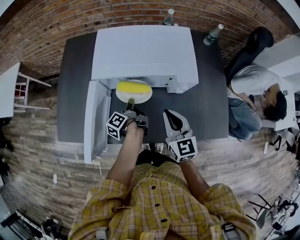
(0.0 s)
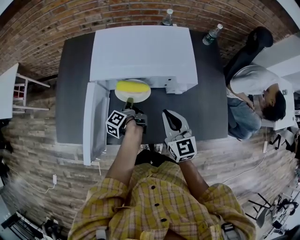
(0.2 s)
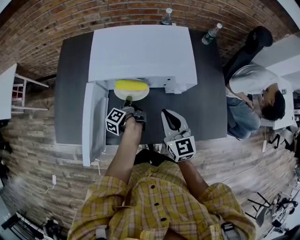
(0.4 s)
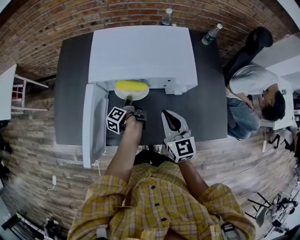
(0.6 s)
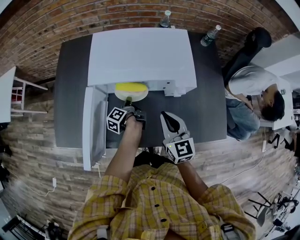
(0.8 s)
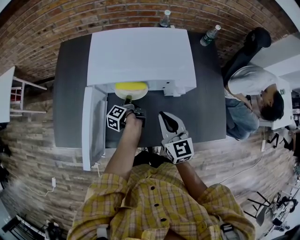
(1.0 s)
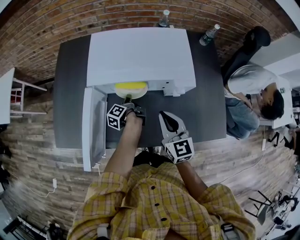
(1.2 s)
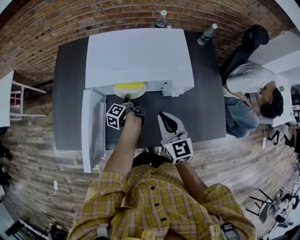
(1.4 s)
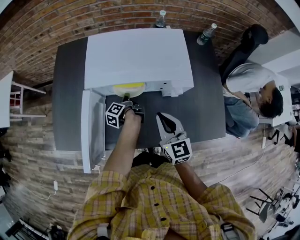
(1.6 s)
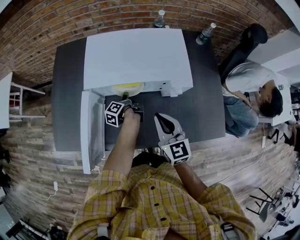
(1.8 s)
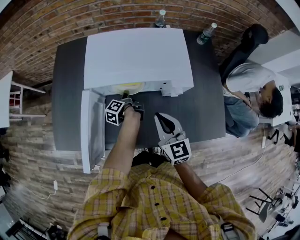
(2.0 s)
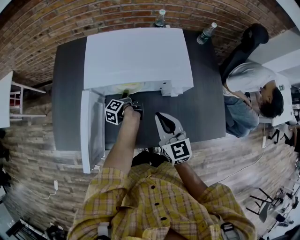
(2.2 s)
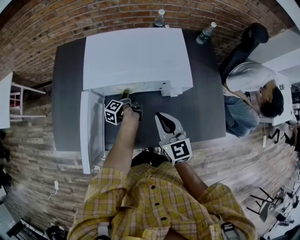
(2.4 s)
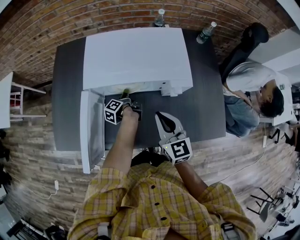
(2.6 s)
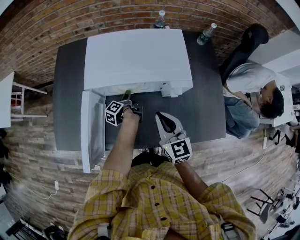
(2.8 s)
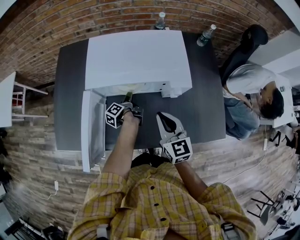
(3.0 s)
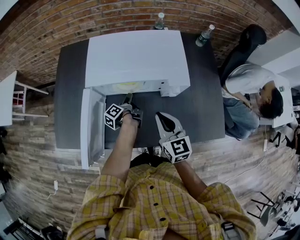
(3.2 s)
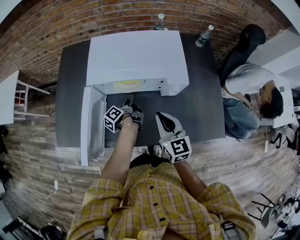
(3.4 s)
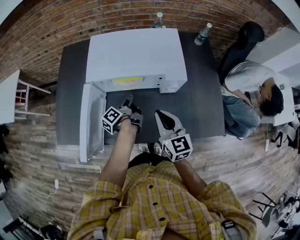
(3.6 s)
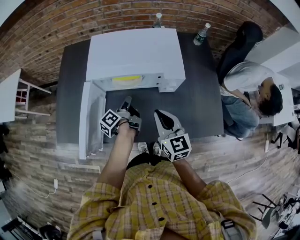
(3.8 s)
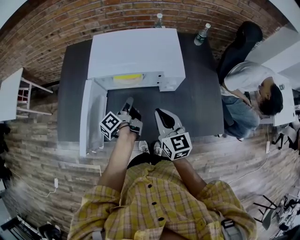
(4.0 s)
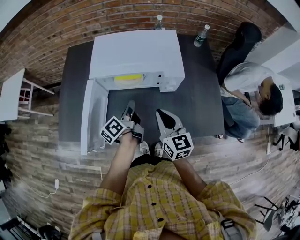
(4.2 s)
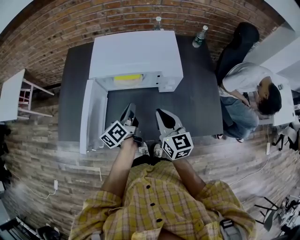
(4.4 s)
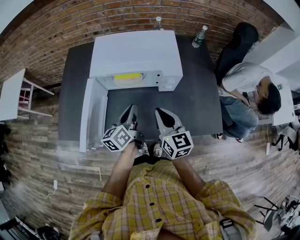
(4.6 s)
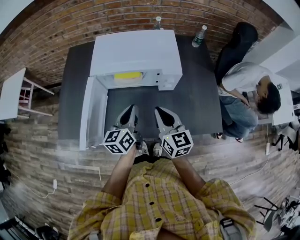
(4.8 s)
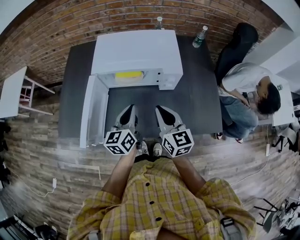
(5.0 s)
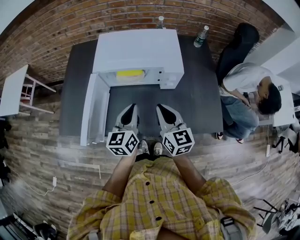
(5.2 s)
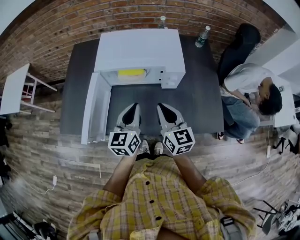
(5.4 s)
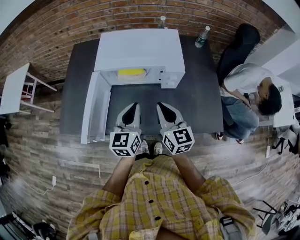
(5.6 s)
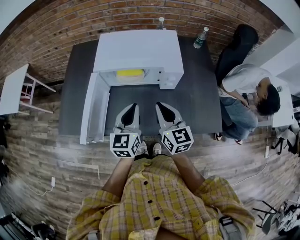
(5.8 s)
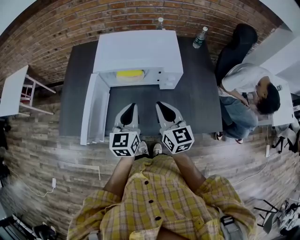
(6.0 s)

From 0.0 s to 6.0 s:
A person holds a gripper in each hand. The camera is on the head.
From 3.0 s to 4.4 s: The right gripper ends up about 5 cm from where it was.

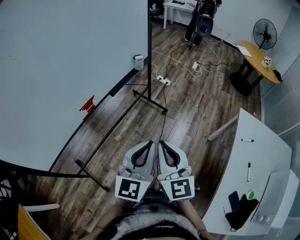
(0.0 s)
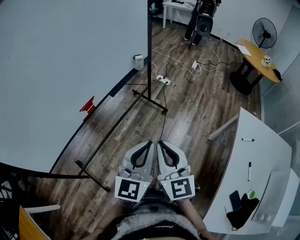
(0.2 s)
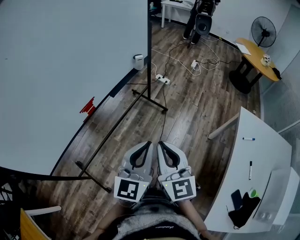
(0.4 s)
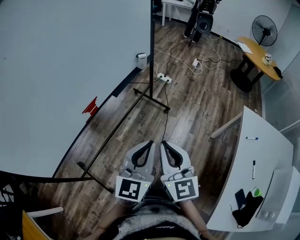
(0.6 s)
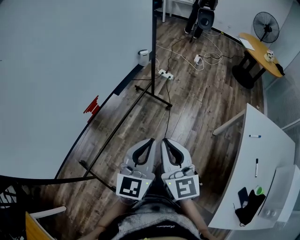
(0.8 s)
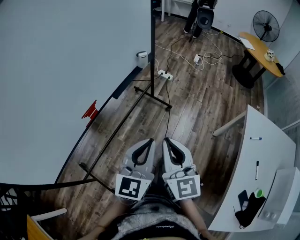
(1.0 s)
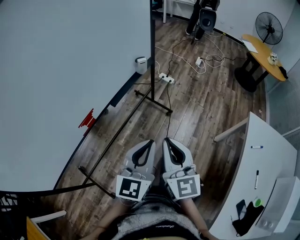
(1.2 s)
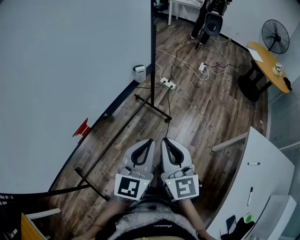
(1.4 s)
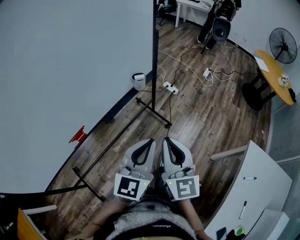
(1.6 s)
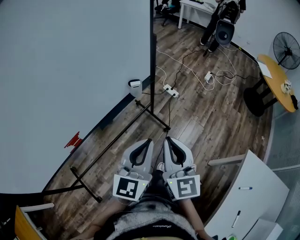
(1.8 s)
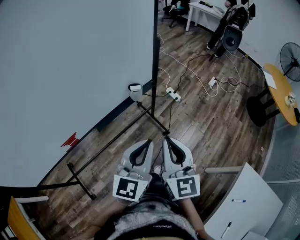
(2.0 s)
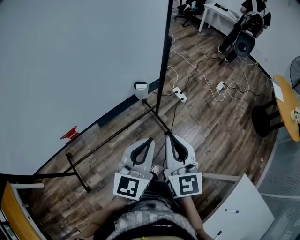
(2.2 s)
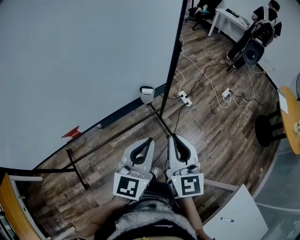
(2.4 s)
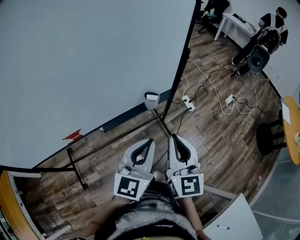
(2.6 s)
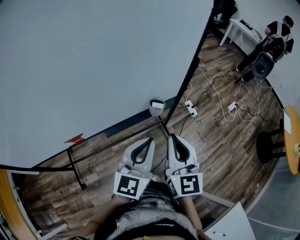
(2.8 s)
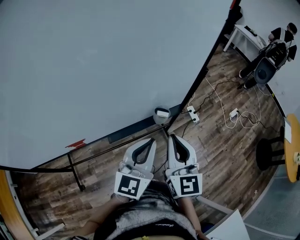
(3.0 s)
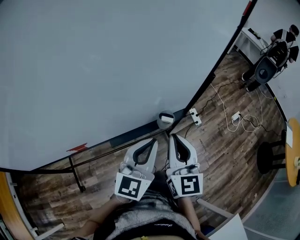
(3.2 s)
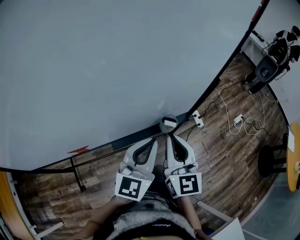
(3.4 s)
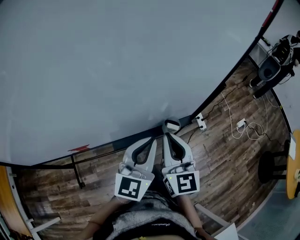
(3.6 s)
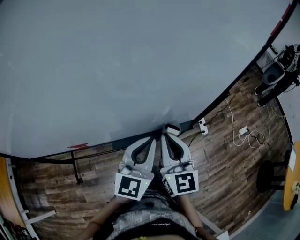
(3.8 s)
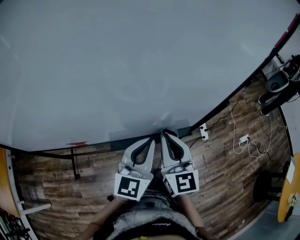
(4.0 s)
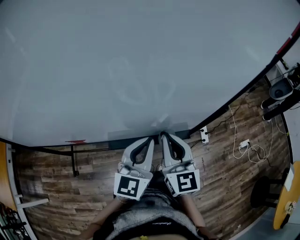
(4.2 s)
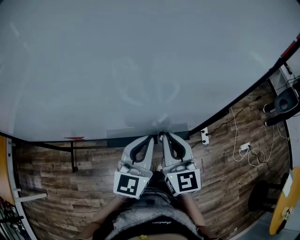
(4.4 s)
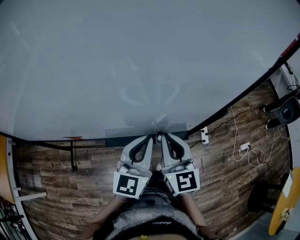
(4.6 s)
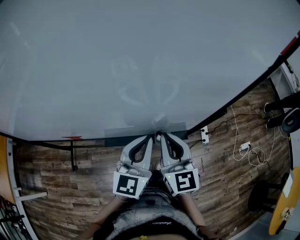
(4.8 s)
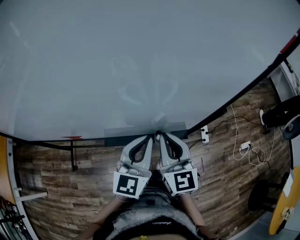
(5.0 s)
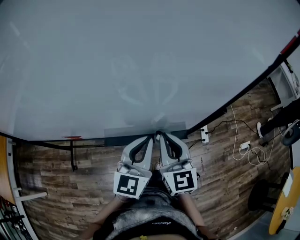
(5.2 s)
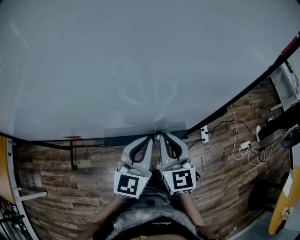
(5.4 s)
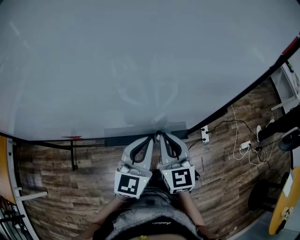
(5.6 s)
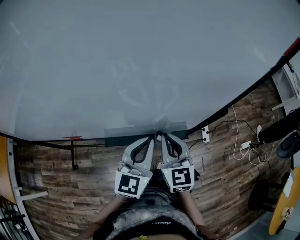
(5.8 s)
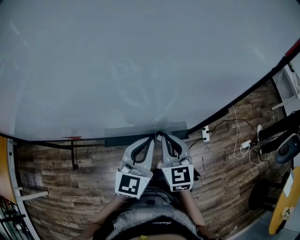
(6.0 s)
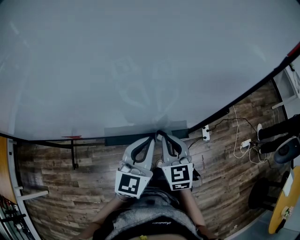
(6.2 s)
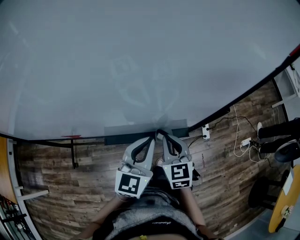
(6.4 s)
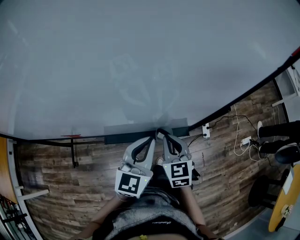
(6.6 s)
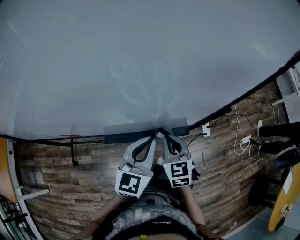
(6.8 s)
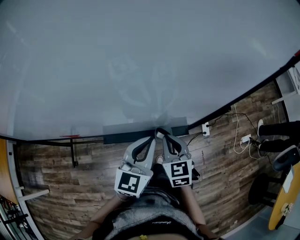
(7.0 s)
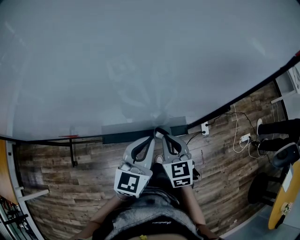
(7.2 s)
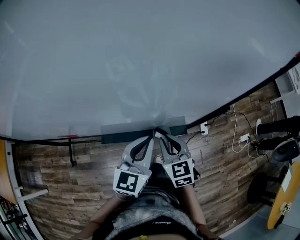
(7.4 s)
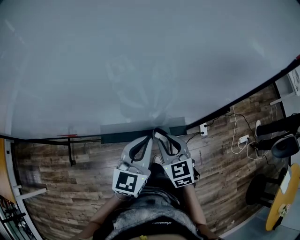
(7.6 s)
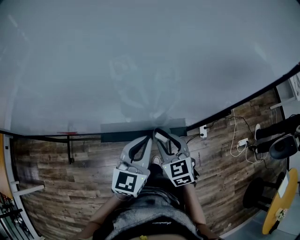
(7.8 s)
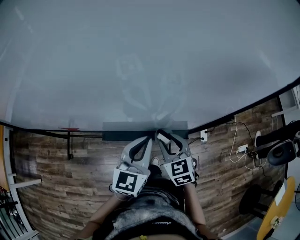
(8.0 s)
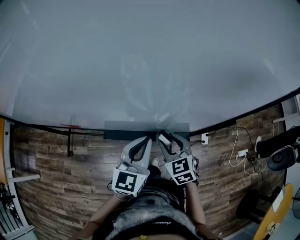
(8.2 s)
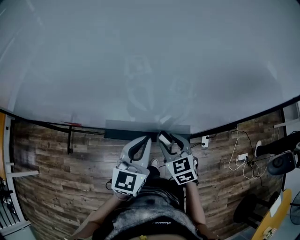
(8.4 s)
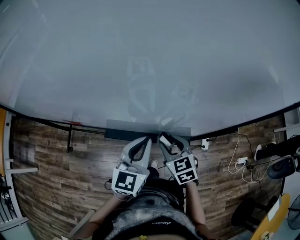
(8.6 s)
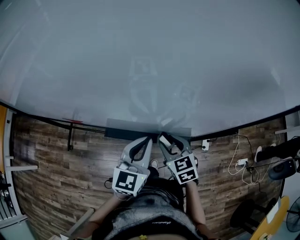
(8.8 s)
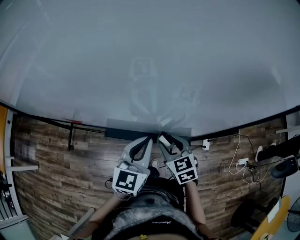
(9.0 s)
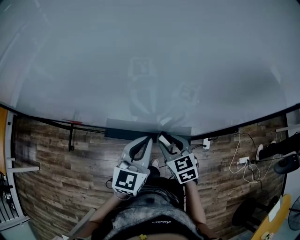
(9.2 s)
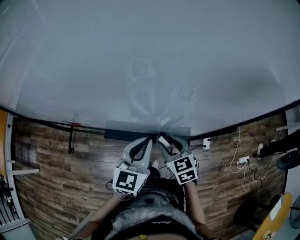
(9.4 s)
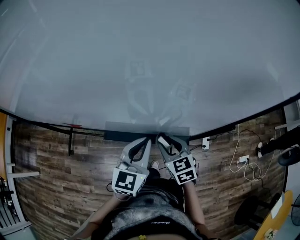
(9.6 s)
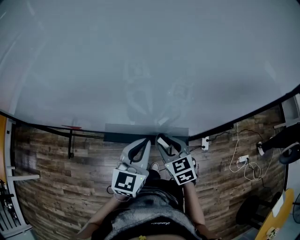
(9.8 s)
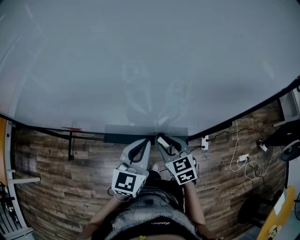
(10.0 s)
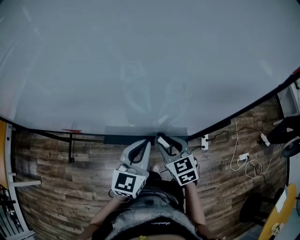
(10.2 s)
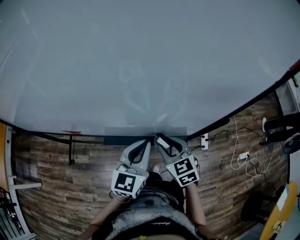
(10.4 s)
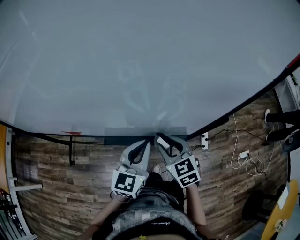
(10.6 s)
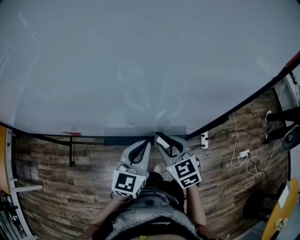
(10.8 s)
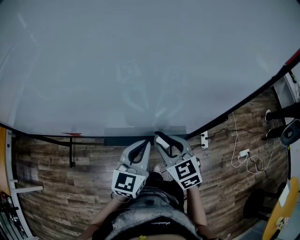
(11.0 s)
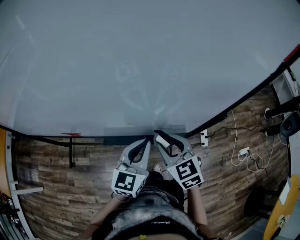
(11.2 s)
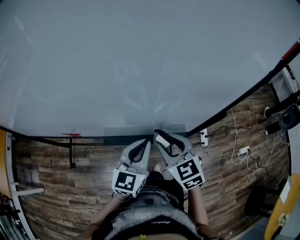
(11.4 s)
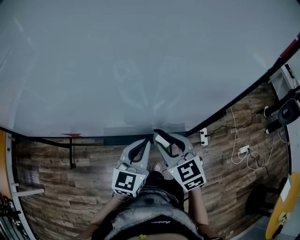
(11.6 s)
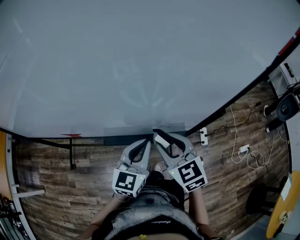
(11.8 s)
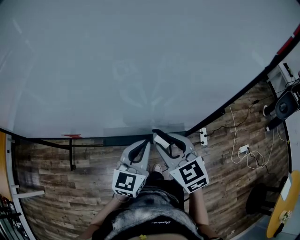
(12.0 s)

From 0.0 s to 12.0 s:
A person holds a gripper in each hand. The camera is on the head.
From 0.0 s to 1.6 s: The grippers both shift forward by some 30 cm.
From 1.6 s to 3.0 s: The grippers both shift forward by roughly 25 cm. The right gripper swivels about 20 degrees, while the left gripper turns by about 20 degrees.
From 3.0 s to 4.4 s: The two grippers go some 15 cm forward. The right gripper rotates about 20 degrees, while the left gripper swivels some 20 degrees.
From 4.4 s to 6.0 s: The right gripper heads downward, covering some 5 cm.
From 6.0 s to 7.6 s: The right gripper shifts some 5 cm downward, and opens.
From 7.6 s to 10.4 s: The grippers move only a little.
From 10.4 s to 12.0 s: The right gripper shifts roughly 10 cm upward.

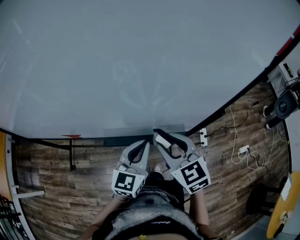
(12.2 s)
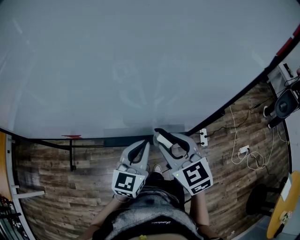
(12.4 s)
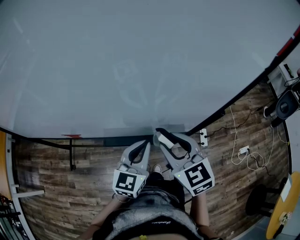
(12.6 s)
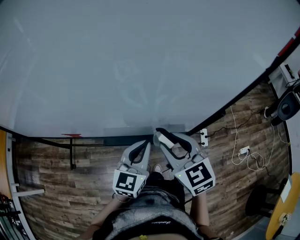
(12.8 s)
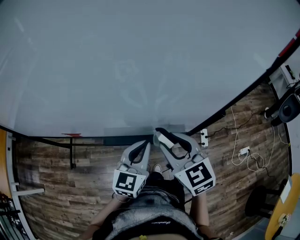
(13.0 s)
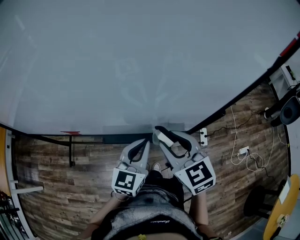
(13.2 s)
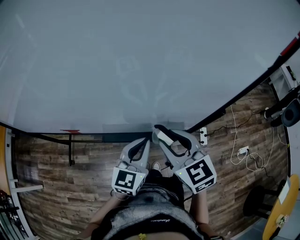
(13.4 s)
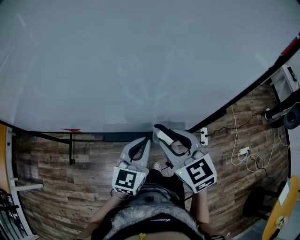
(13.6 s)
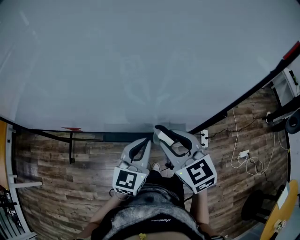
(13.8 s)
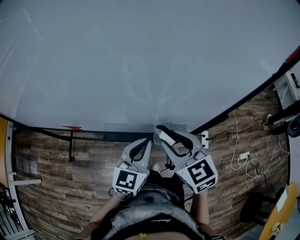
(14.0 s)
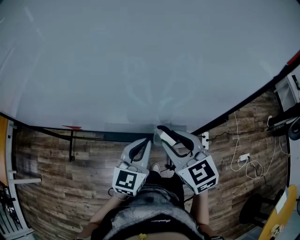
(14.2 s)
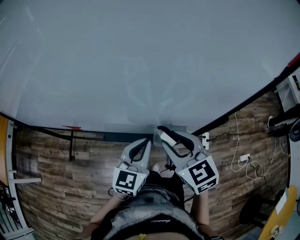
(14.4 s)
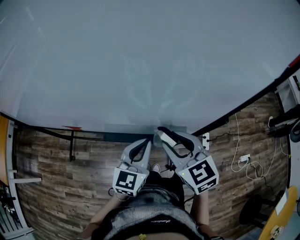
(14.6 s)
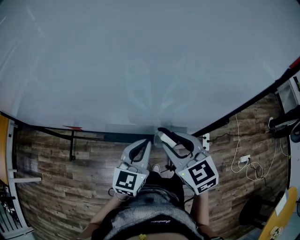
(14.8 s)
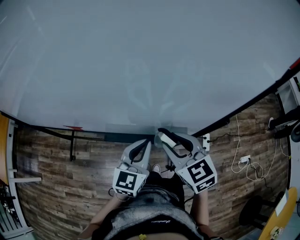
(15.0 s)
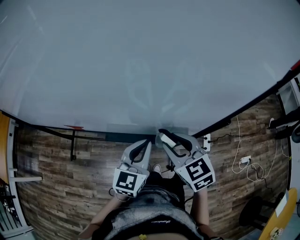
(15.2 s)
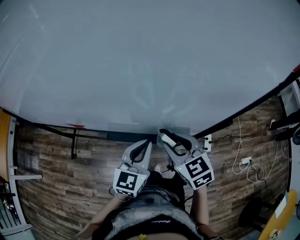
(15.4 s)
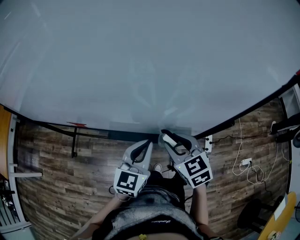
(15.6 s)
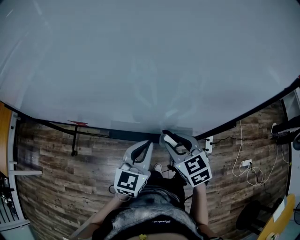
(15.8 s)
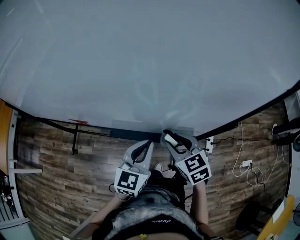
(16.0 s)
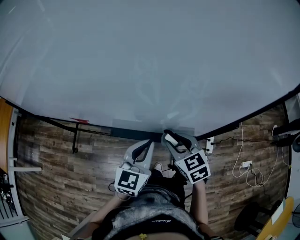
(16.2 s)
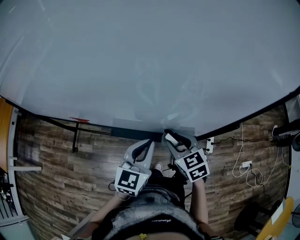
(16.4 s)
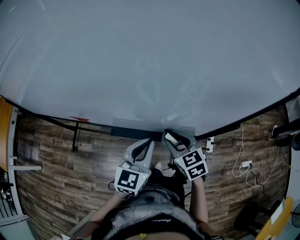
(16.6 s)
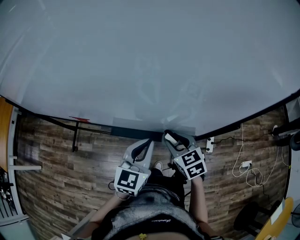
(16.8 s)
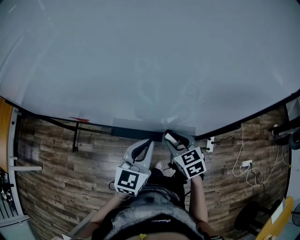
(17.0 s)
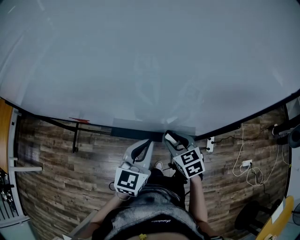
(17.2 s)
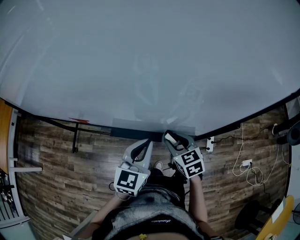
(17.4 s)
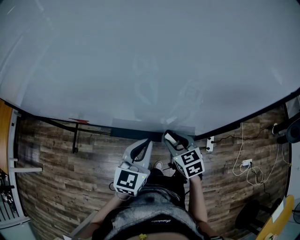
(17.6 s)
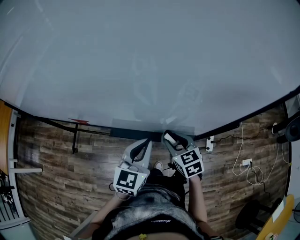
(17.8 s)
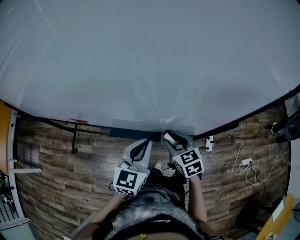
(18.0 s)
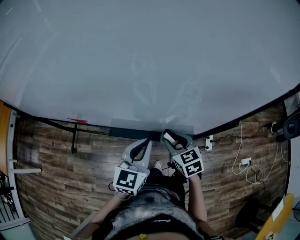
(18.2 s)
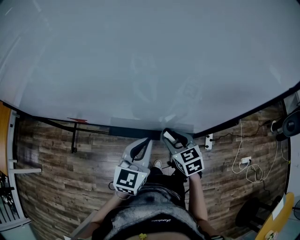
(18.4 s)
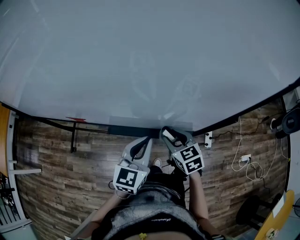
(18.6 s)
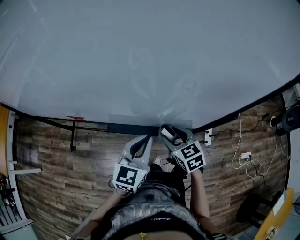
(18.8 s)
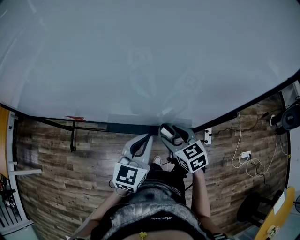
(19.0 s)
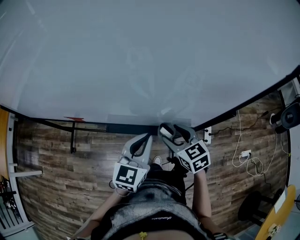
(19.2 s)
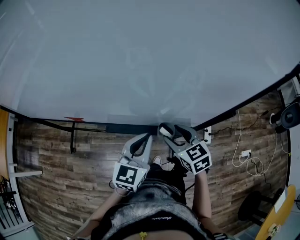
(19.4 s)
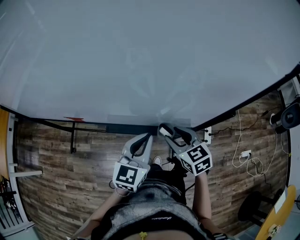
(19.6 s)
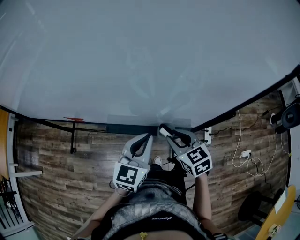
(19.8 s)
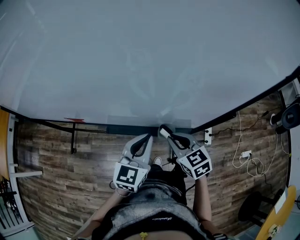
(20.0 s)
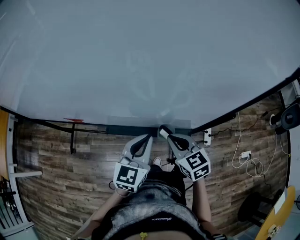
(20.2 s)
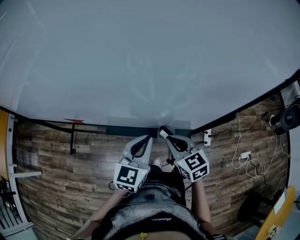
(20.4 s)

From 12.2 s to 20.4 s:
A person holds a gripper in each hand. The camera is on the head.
From 12.2 s to 13.8 s: The grippers stay close to where they were, moving slightly.
From 13.8 s to 15.4 s: The right gripper is displaced downward by about 5 cm.
From 15.4 s to 17.2 s: The right gripper moves downward, some 10 cm.
From 17.2 s to 18.8 s: Both grippers stay put.
From 18.8 s to 20.4 s: The right gripper closes.
